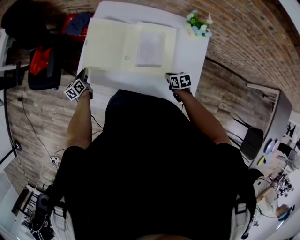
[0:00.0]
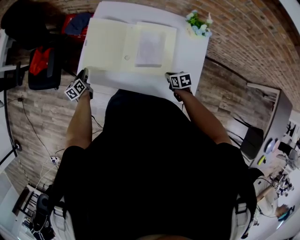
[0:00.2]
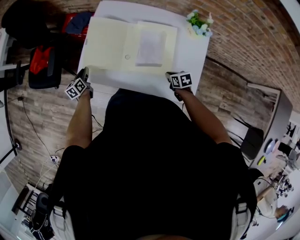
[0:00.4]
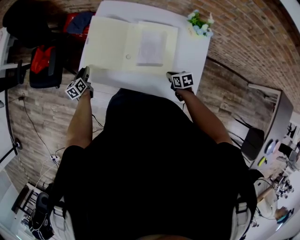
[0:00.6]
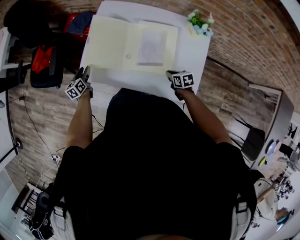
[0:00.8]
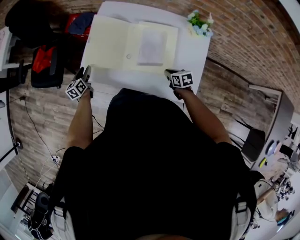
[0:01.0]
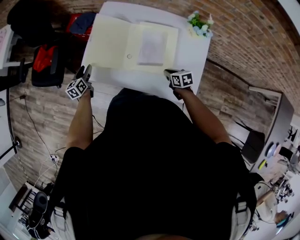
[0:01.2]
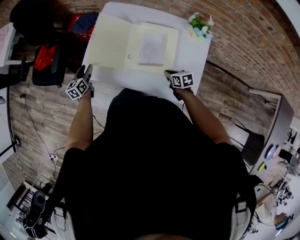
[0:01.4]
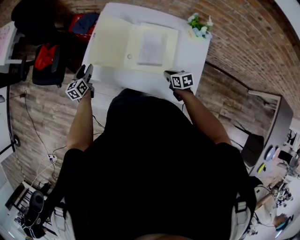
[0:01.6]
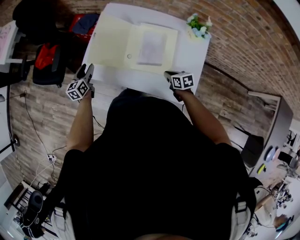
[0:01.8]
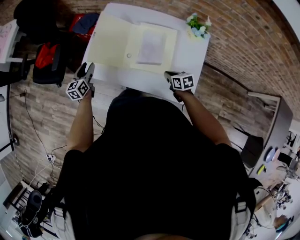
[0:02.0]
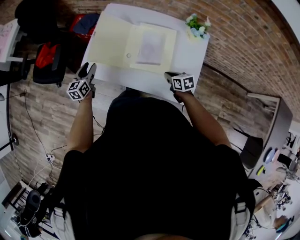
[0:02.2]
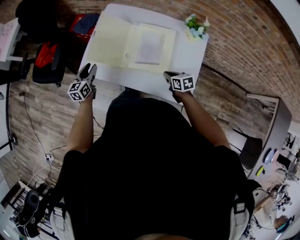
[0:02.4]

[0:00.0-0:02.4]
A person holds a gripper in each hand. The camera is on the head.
0:00.0 to 0:01.2: The left gripper opens its fingers.
0:01.2 to 0:02.4: The left gripper travels upward, backward and to the right by about 10 cm.

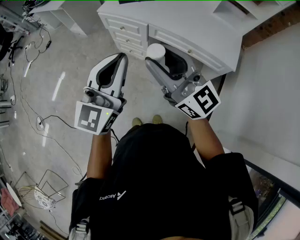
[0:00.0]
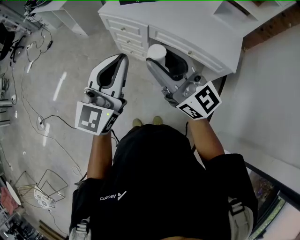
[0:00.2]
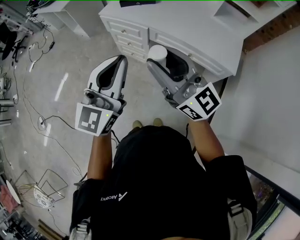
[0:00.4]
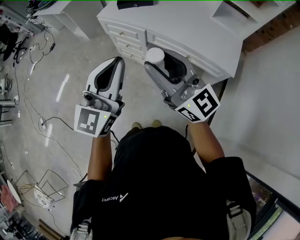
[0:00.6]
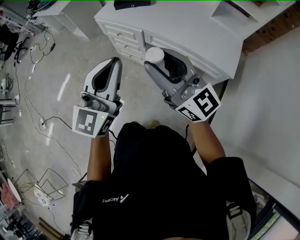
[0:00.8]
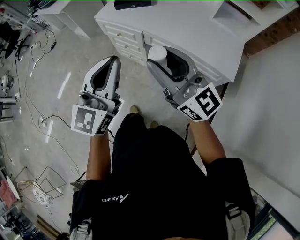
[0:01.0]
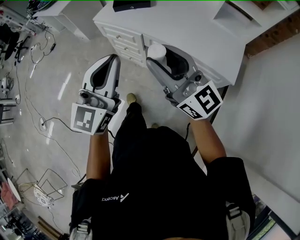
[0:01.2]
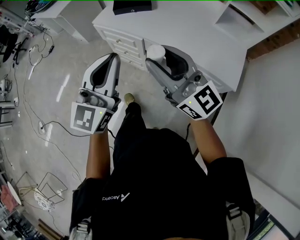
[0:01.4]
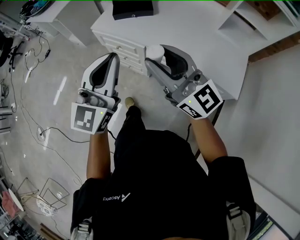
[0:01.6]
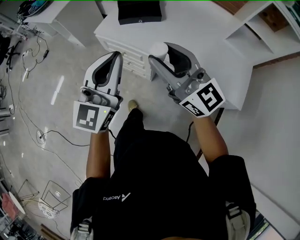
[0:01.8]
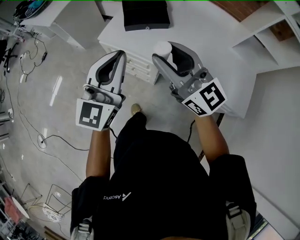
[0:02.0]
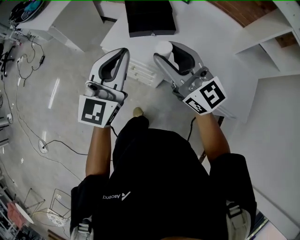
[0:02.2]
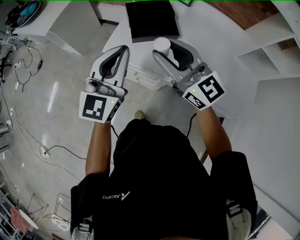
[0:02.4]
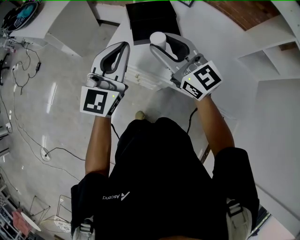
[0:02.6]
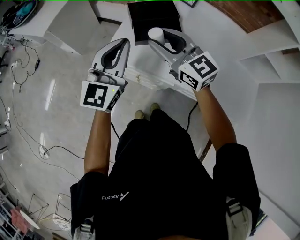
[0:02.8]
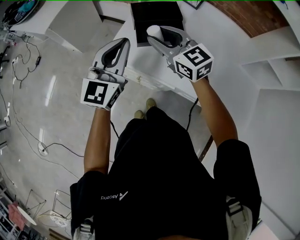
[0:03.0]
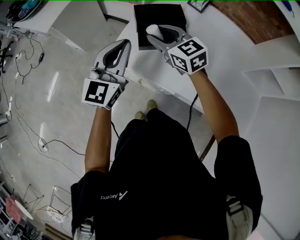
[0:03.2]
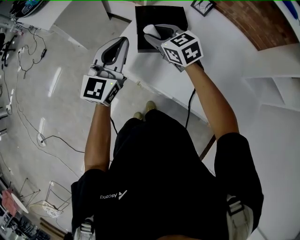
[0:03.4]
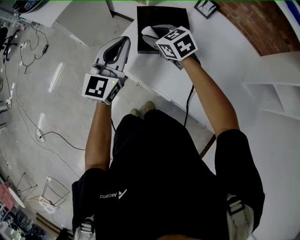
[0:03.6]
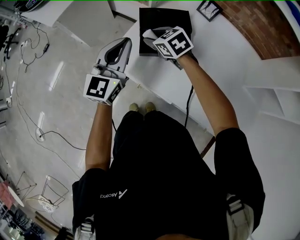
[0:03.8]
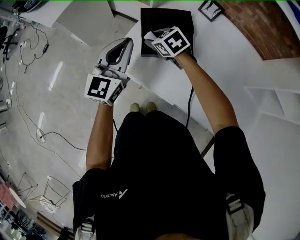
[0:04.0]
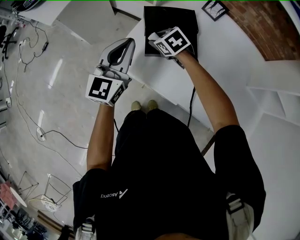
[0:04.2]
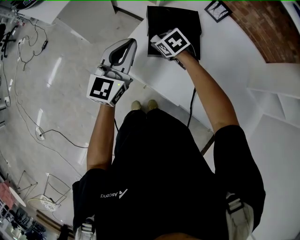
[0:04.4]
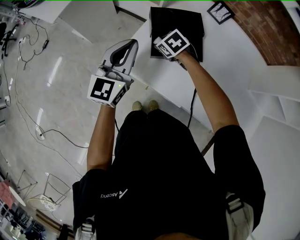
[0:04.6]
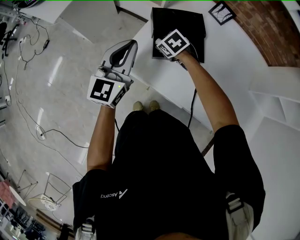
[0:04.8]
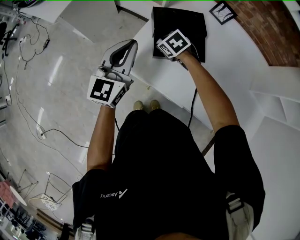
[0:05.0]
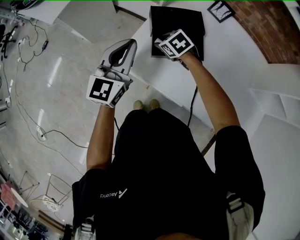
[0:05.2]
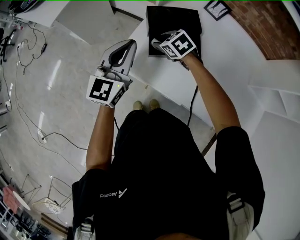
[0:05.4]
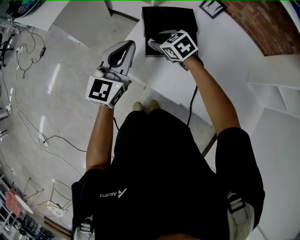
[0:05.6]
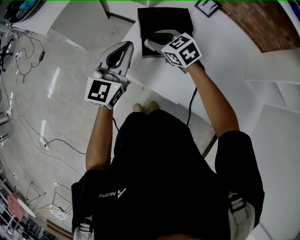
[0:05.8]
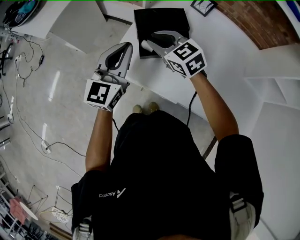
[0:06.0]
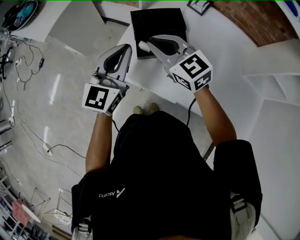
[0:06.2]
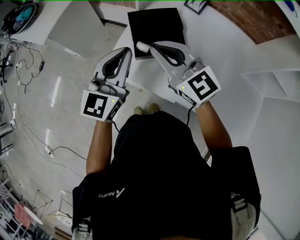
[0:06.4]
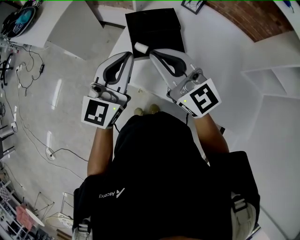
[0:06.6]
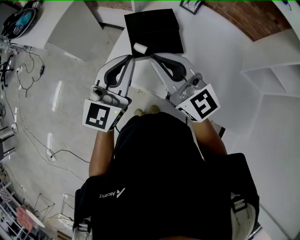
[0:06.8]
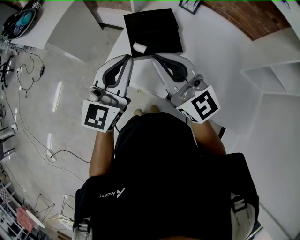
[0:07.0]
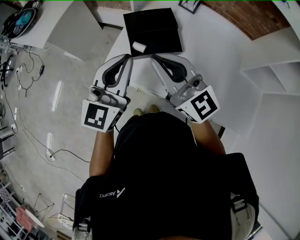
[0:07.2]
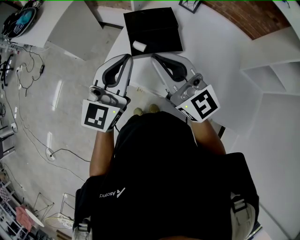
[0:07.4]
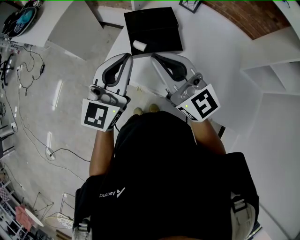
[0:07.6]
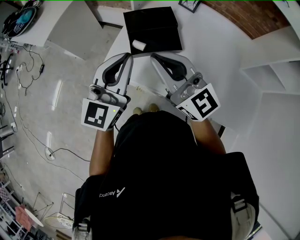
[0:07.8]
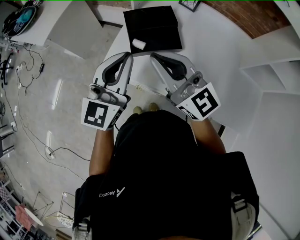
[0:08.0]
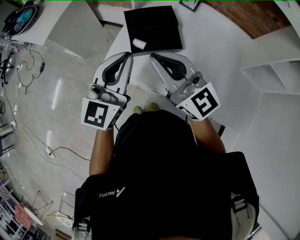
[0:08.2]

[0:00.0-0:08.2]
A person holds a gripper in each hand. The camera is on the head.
0:00.0 to 0:01.6: Both grippers travel together forward, some 20 cm.
0:01.6 to 0:03.2: The two grippers travel together, forward, about 50 cm. The right gripper angles its fingers downward, by approximately 40 degrees.
0:03.2 to 0:05.0: The left gripper is displaced forward by about 5 cm, while the right gripper moves downward and forward, about 20 cm, and tips its fingers downward by approximately 40 degrees.
0:05.0 to 0:06.6: The right gripper heads upward and backward, covering approximately 35 cm, tips its fingers upward by roughly 70 degrees, and closes. The left gripper shifts about 10 cm backward, upward and to the right.
0:06.6 to 0:08.2: The grippers make only small movements.

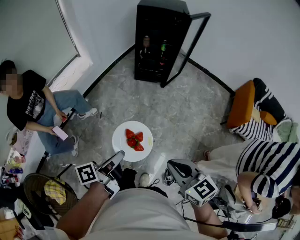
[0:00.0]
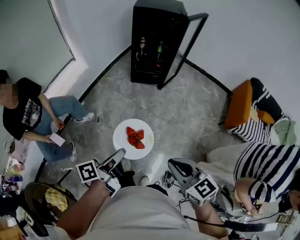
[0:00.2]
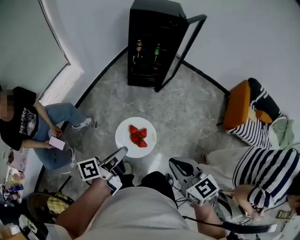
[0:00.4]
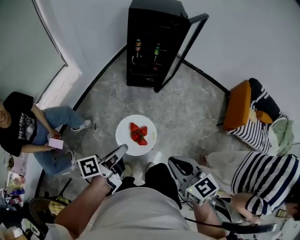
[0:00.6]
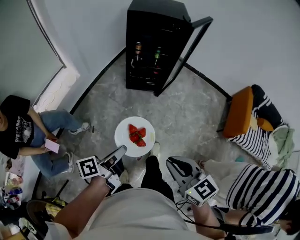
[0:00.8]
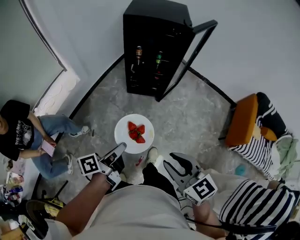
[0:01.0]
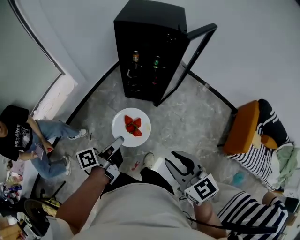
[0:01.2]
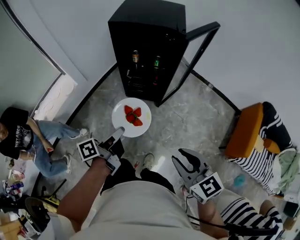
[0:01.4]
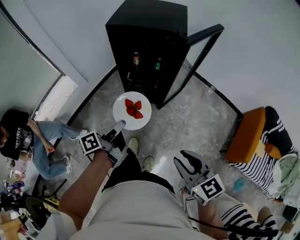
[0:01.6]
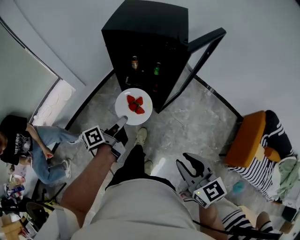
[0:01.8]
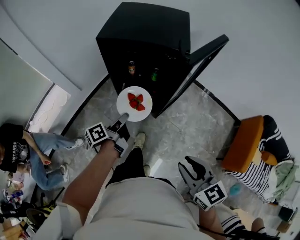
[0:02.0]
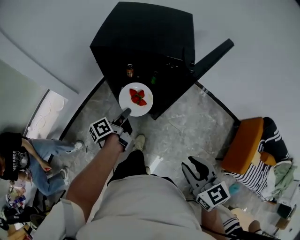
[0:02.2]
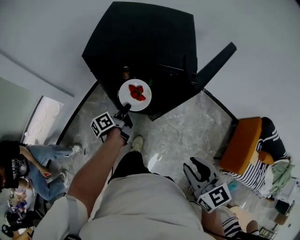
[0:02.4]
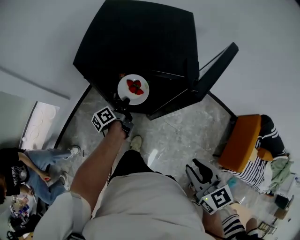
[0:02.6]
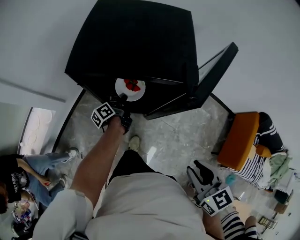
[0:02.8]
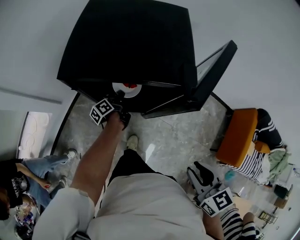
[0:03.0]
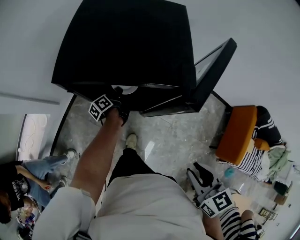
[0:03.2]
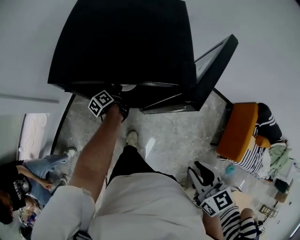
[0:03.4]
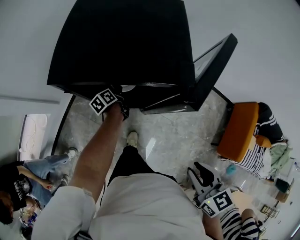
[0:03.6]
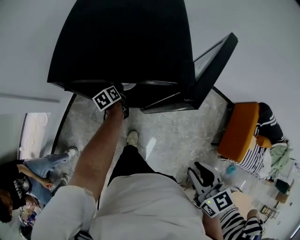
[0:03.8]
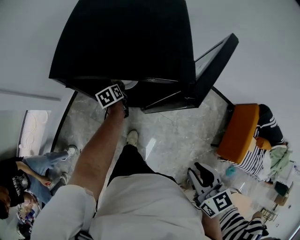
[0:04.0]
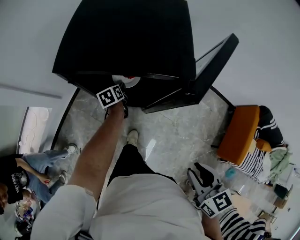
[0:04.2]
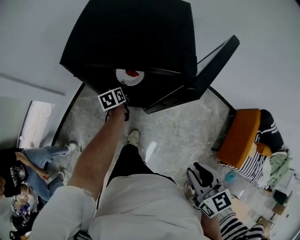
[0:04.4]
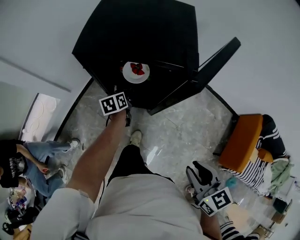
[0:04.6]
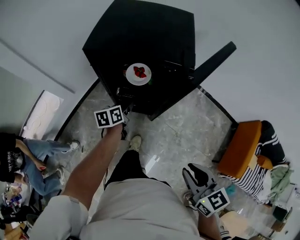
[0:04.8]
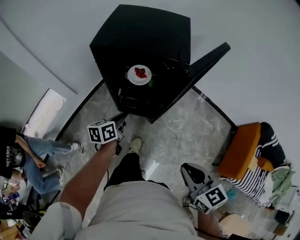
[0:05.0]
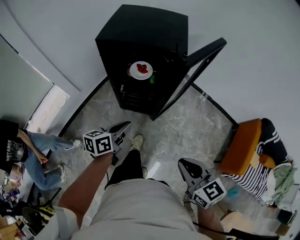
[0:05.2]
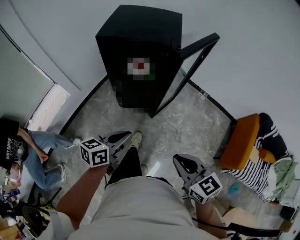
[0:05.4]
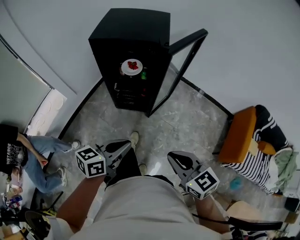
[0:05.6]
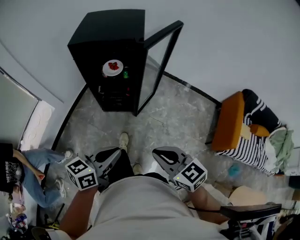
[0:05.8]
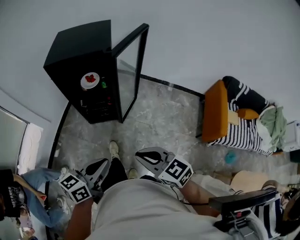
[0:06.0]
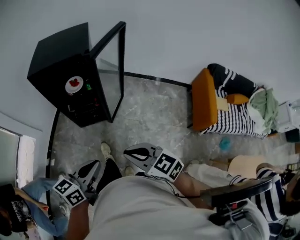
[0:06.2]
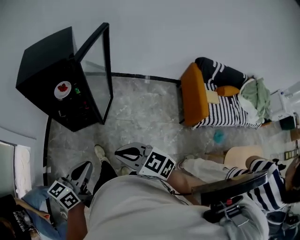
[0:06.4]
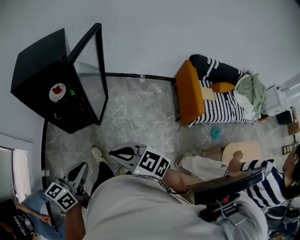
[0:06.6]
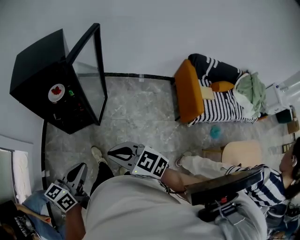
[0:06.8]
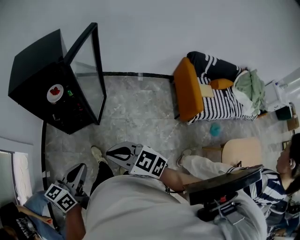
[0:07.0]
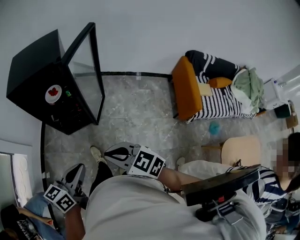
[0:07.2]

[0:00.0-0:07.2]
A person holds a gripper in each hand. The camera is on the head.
0:00.0 to 0:01.4: Both grippers are carried forward, about 50 cm. The right gripper opens its fingers.
0:01.4 to 0:02.8: The left gripper travels forward and downward by some 50 cm, while the right gripper travels forward by about 25 cm, and rotates about 20 degrees.
0:02.8 to 0:04.4: The left gripper turns by roughly 40 degrees, and opens its fingers.
0:04.4 to 0:05.8: The right gripper shifts approximately 20 cm backward, rotates approximately 20 degrees, and closes; the left gripper is displaced backward and upward by approximately 60 cm, turns by roughly 50 degrees, and closes its fingers.
0:05.8 to 0:07.2: The grippers stay close to where they were, moving slightly.

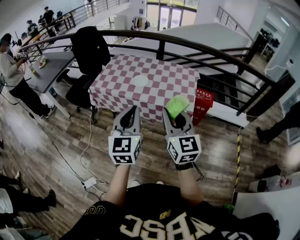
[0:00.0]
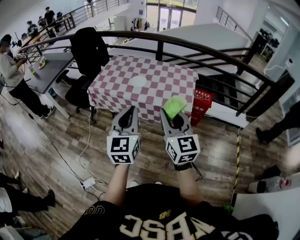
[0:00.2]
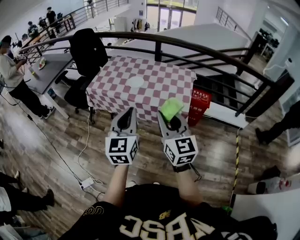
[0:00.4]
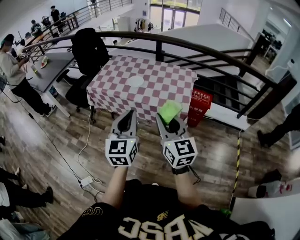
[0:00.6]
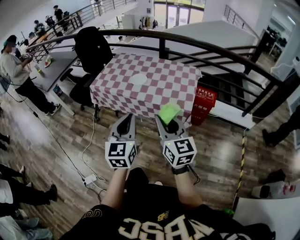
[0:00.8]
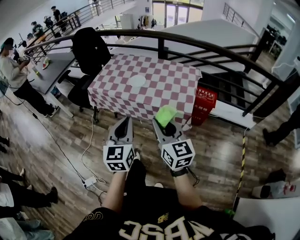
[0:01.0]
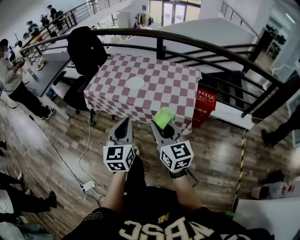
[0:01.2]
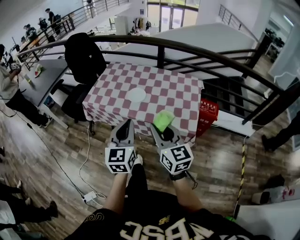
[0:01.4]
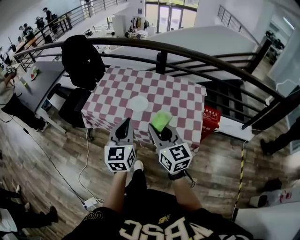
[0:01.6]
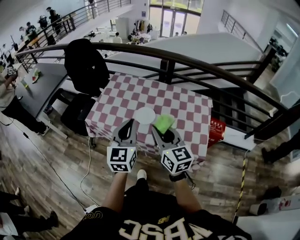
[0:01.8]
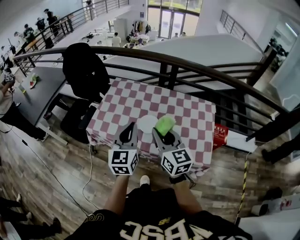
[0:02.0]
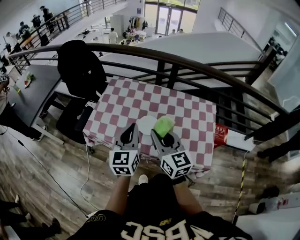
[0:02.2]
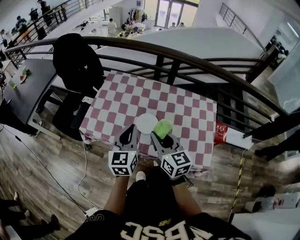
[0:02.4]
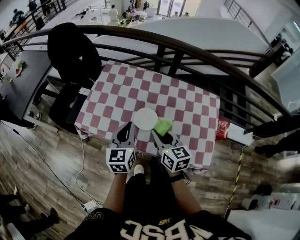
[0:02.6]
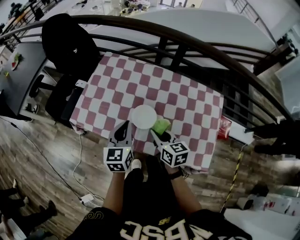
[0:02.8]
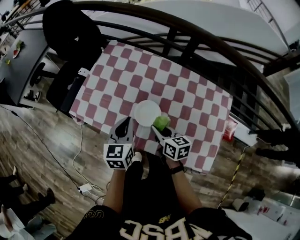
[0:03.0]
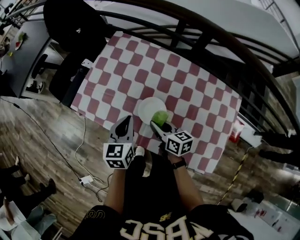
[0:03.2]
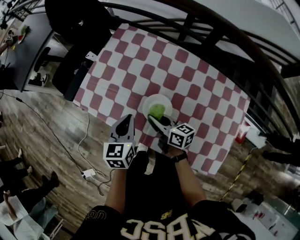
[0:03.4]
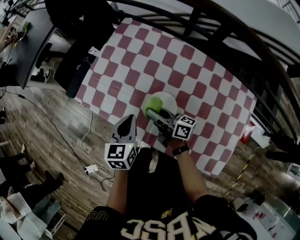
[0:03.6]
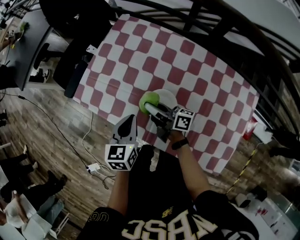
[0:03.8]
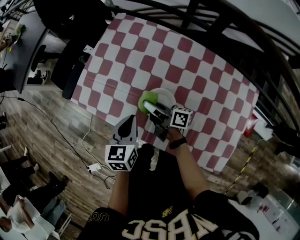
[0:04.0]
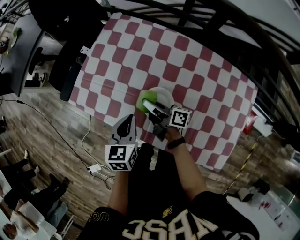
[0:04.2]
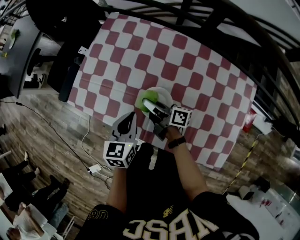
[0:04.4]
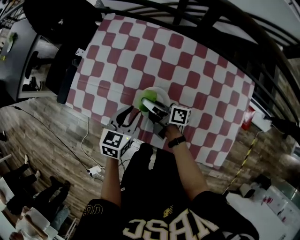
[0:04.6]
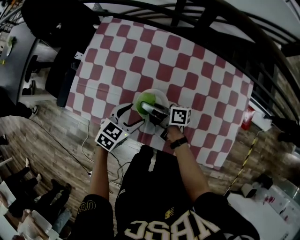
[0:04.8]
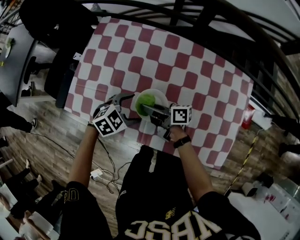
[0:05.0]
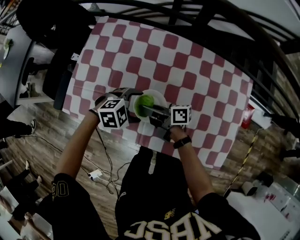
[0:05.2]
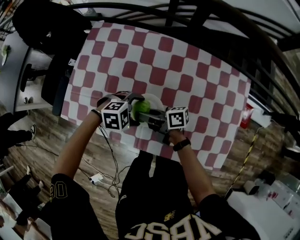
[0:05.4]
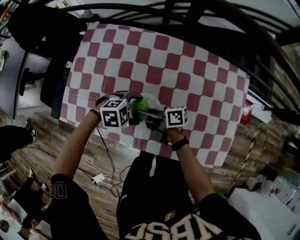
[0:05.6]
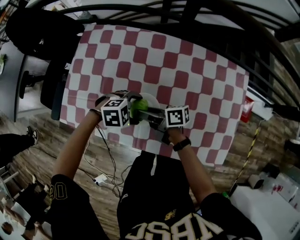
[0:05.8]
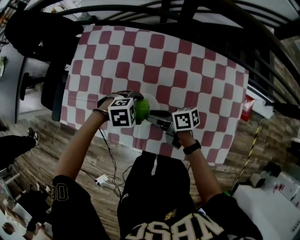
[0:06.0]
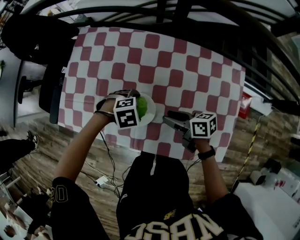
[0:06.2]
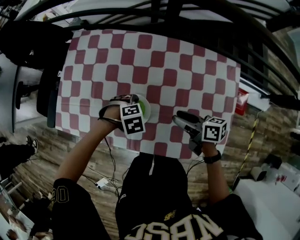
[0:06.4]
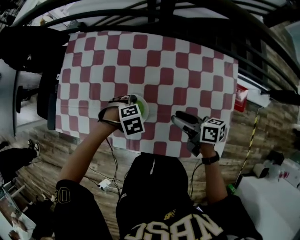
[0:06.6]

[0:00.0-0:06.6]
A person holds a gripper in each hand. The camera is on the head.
0:00.0 to 0:01.6: The two grippers go roughly 25 cm forward.
0:01.6 to 0:03.2: The right gripper travels downward and forward by about 40 cm, and changes its angle by some 40 degrees, while the left gripper moves forward and downward, some 35 cm, and turns by about 30 degrees.
0:03.2 to 0:05.0: The left gripper heads downward, covering roughly 15 cm, changes its angle by roughly 70 degrees, and opens its fingers, while the right gripper ends up about 10 cm from where it was, and rotates approximately 40 degrees.
0:05.0 to 0:06.6: The left gripper shifts by about 10 cm, and angles its fingers downward, by approximately 30 degrees. Meanwhile the right gripper shifts by about 20 cm, and turns by some 30 degrees.
